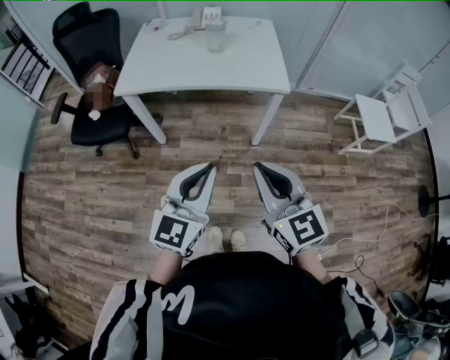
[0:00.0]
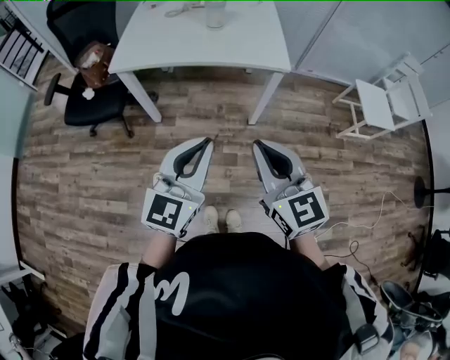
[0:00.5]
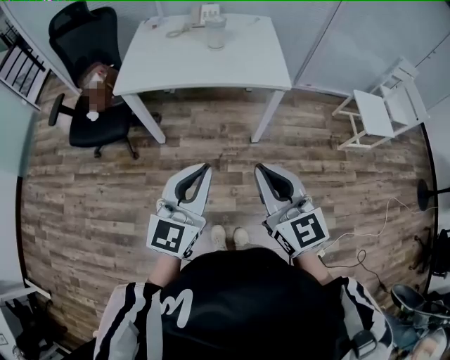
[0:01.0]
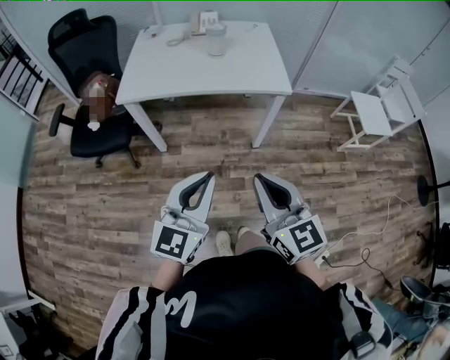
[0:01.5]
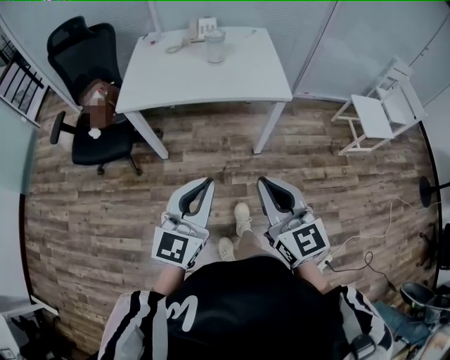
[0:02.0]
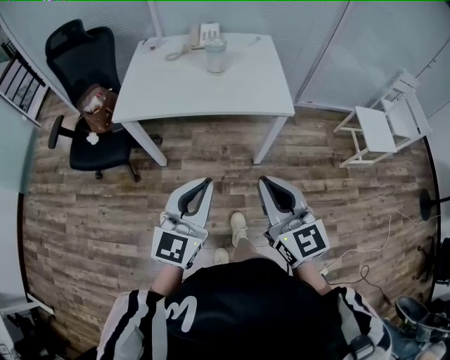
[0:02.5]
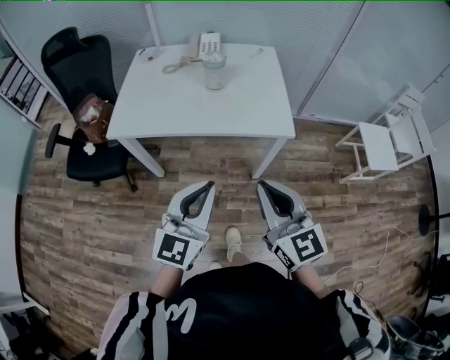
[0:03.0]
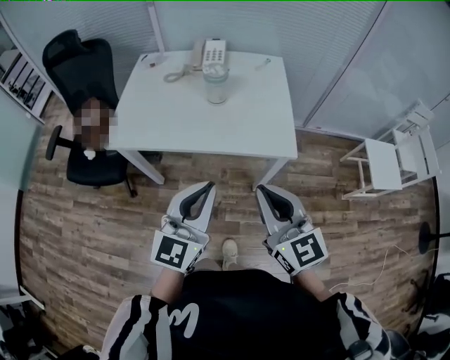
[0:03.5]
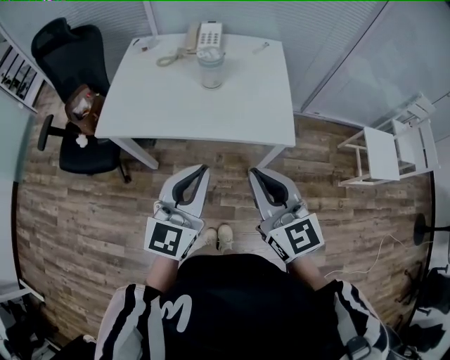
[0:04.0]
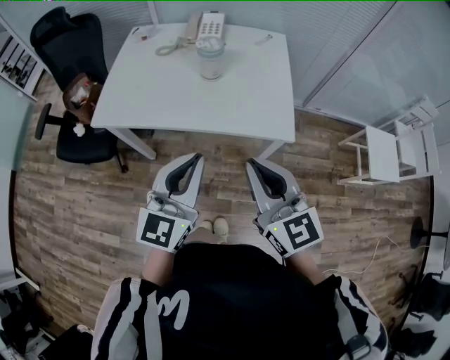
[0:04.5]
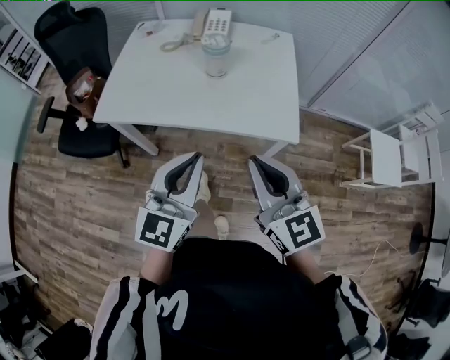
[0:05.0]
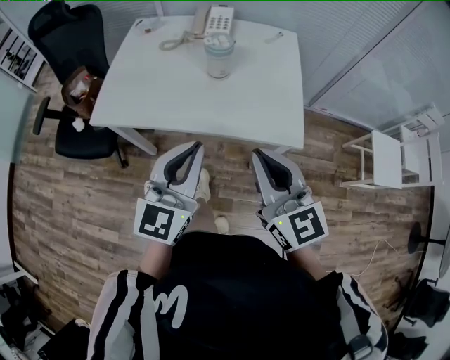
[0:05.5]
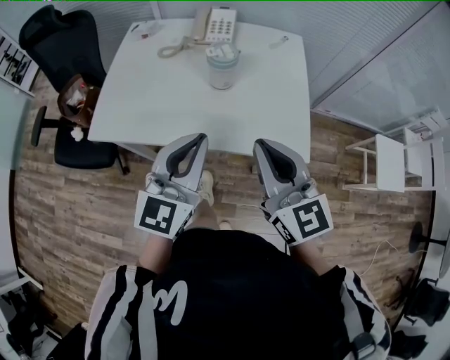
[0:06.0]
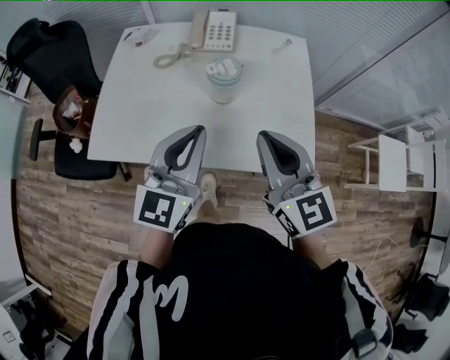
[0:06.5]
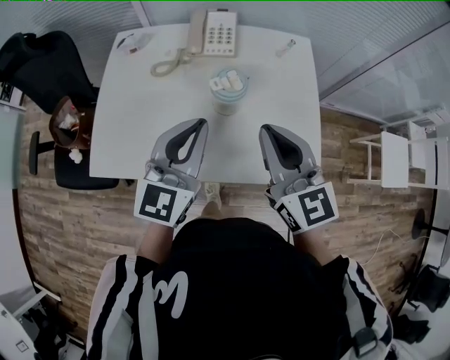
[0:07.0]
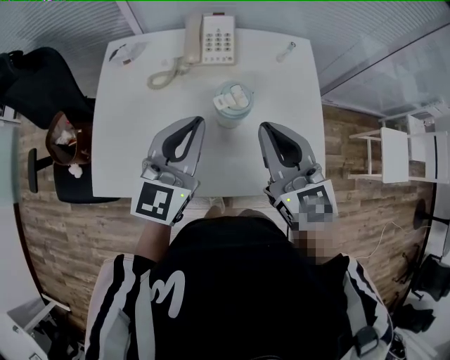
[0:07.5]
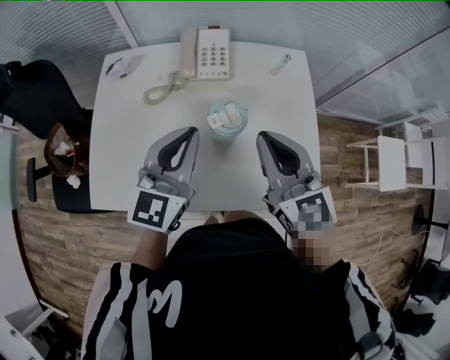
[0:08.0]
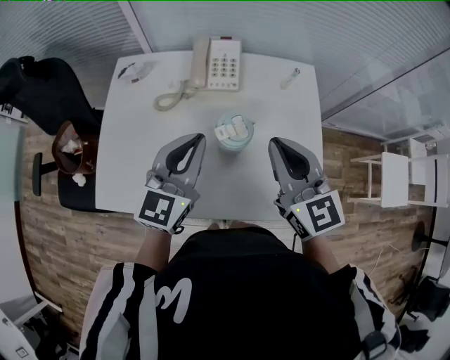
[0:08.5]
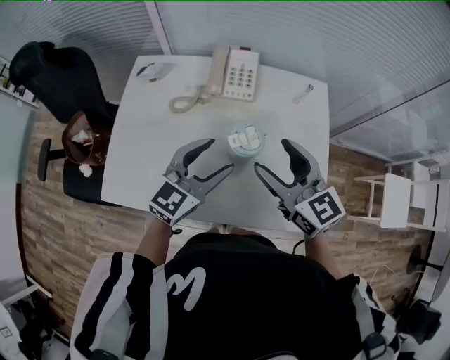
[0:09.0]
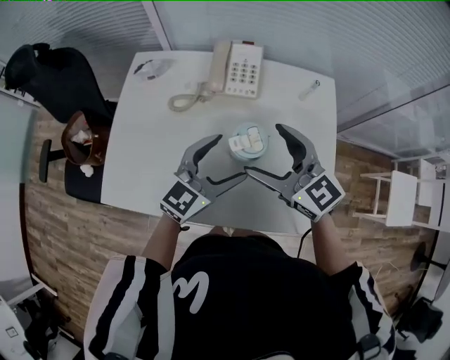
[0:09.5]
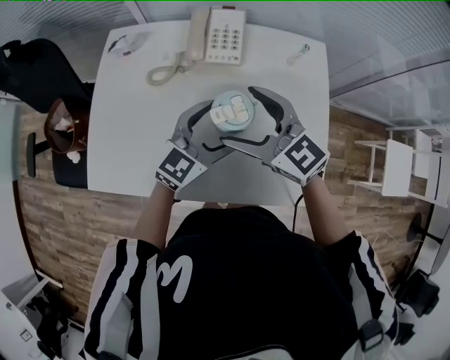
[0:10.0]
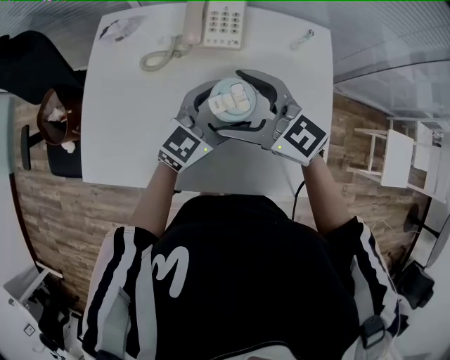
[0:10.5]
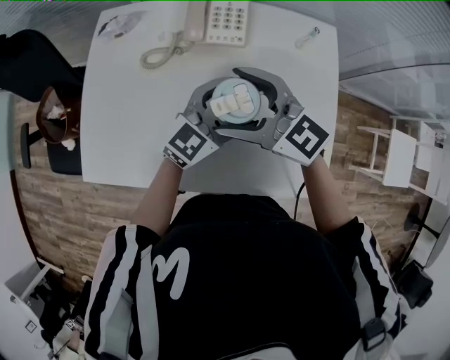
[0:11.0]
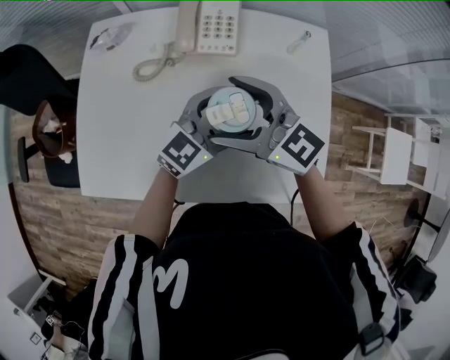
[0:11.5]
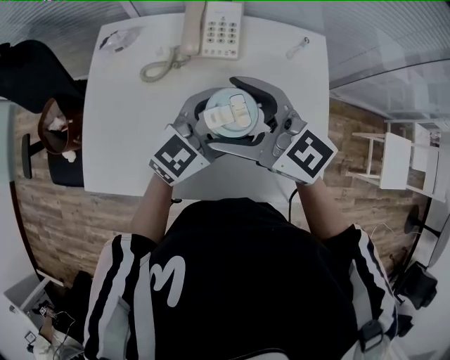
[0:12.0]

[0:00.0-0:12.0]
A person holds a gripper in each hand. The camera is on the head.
0.0 to 2.0 s: The grippers make only small movements.
2.0 to 4.0 s: The grippers both shift forward by about 25 cm.
4.0 to 6.0 s: Both grippers travel together forward, about 15 cm.
6.0 to 8.0 s: The grippers both shift forward by about 20 cm.
8.0 to 10.0 s: The right gripper moves downward and to the left, some 10 cm, changes its angle by approximately 30 degrees, and opens up. Meanwhile the left gripper travels downward and to the right by some 15 cm, and opens up.
10.0 to 12.0 s: The right gripper moves about 5 cm.

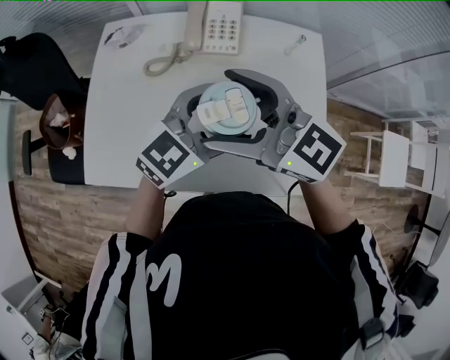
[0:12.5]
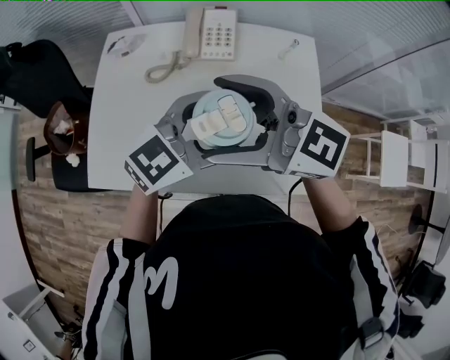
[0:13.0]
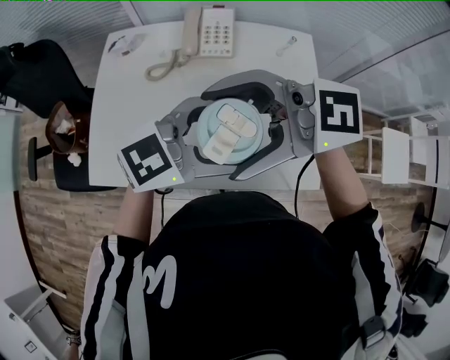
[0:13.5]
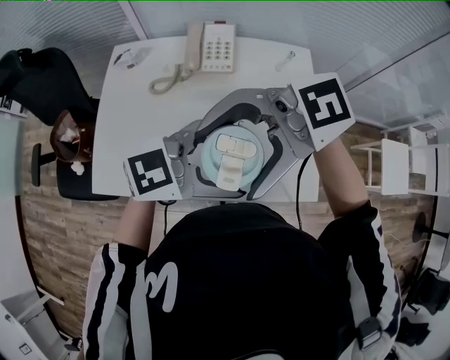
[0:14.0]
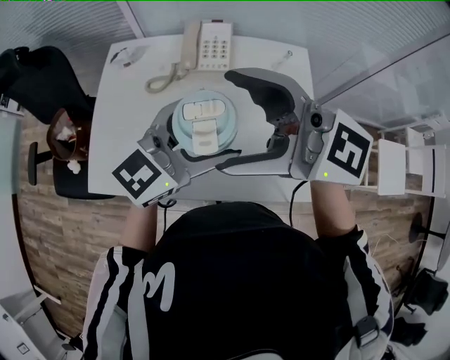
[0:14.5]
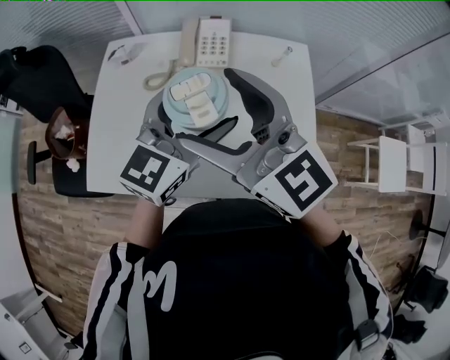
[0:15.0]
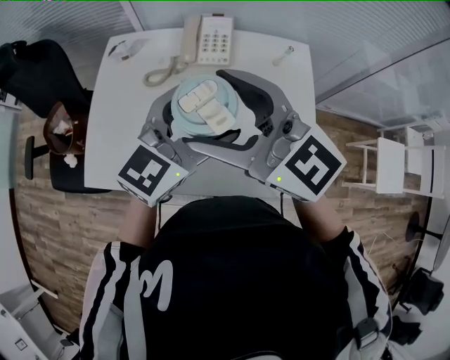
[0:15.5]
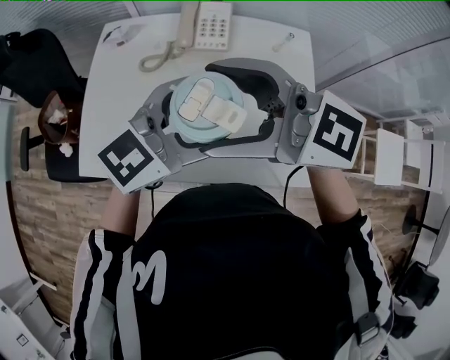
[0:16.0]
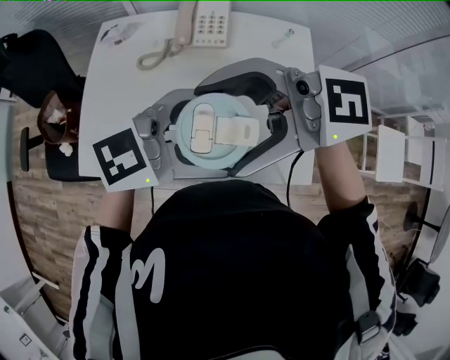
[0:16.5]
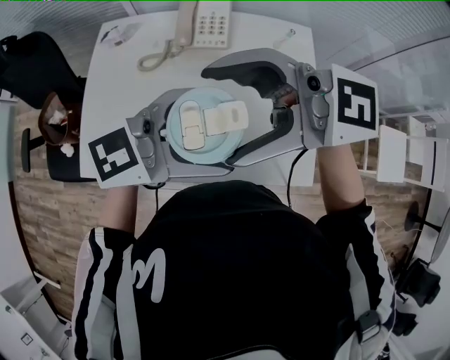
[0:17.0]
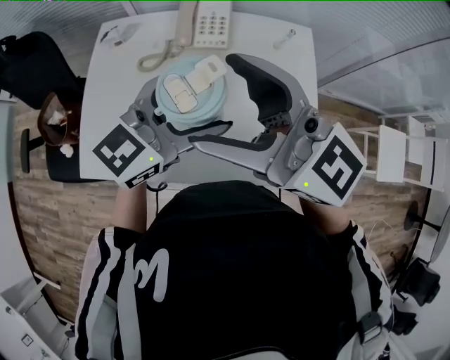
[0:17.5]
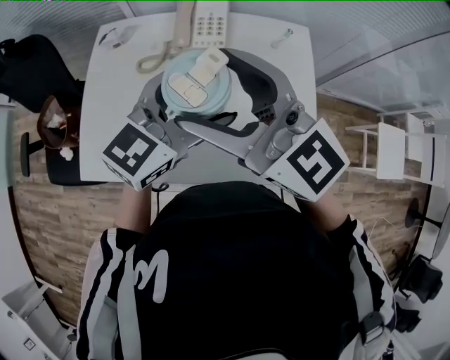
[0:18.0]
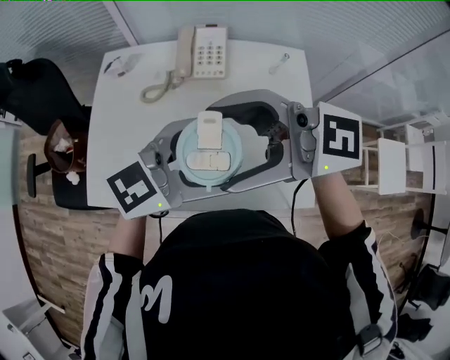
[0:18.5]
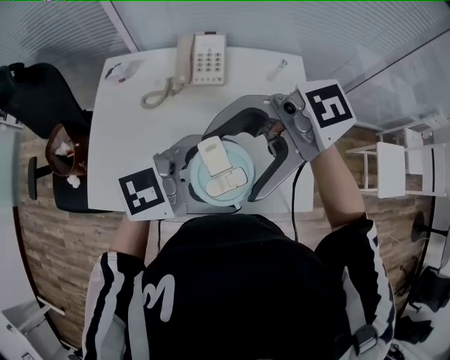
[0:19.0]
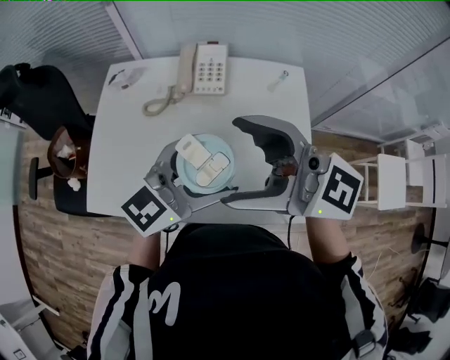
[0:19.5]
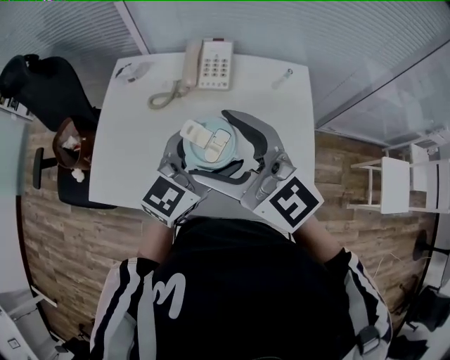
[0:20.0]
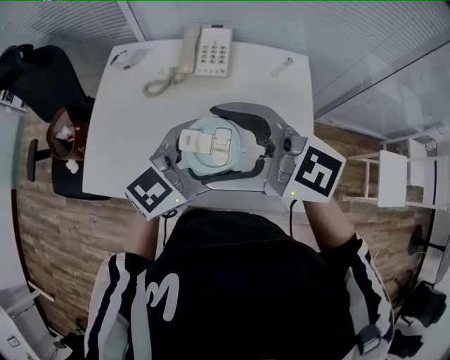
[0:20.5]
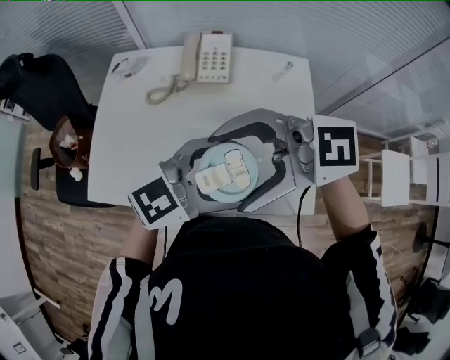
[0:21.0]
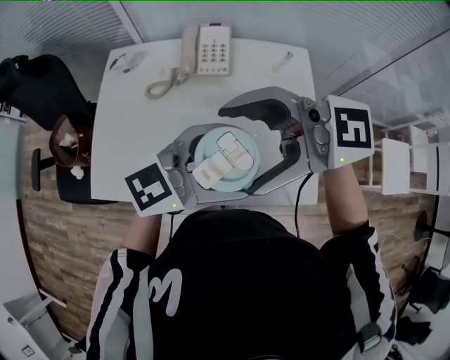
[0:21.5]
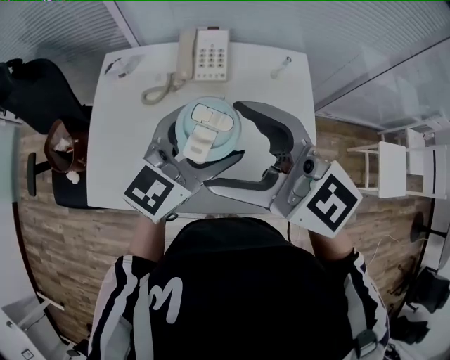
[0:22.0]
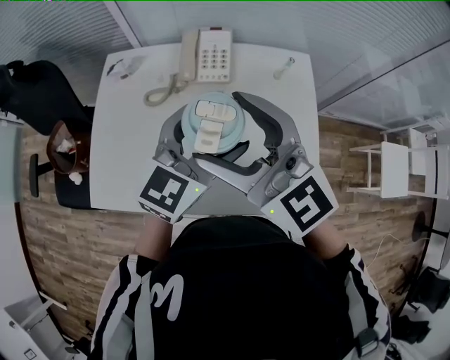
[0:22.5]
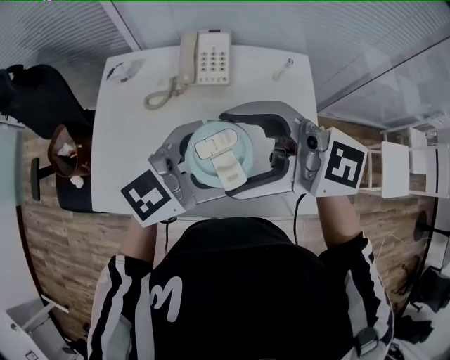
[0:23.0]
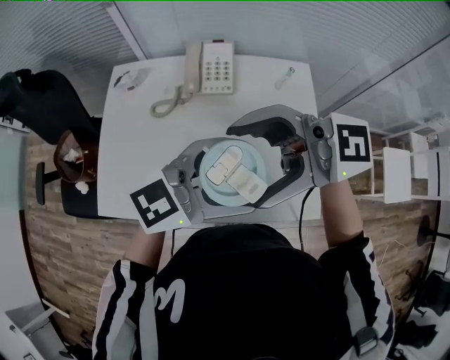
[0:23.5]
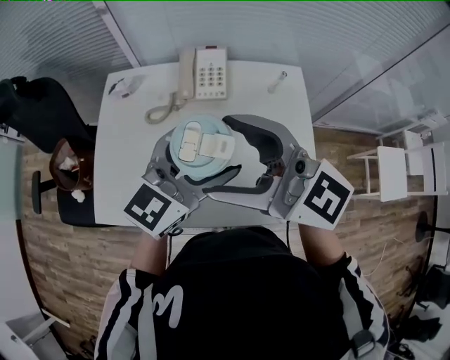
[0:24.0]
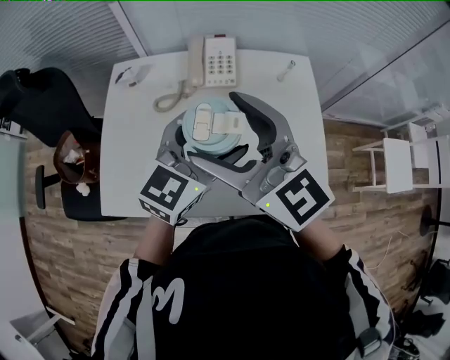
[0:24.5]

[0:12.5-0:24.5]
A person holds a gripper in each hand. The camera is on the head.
12.5 to 14.5 s: Both grippers travel together upward, about 10 cm.
14.5 to 16.5 s: The left gripper shifts by roughly 5 cm, and rotates some 20 degrees. The right gripper moves roughly 5 cm, and rotates approximately 30 degrees.
20.5 to 22.5 s: The right gripper moves some 5 cm, and changes its angle by approximately 30 degrees, while the left gripper moves about 10 cm.

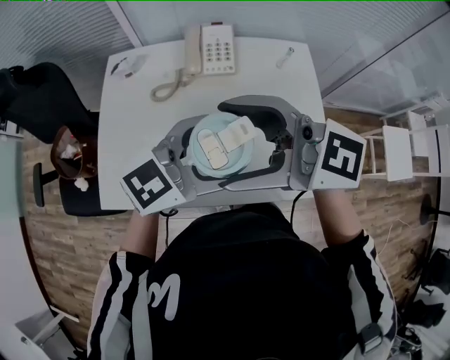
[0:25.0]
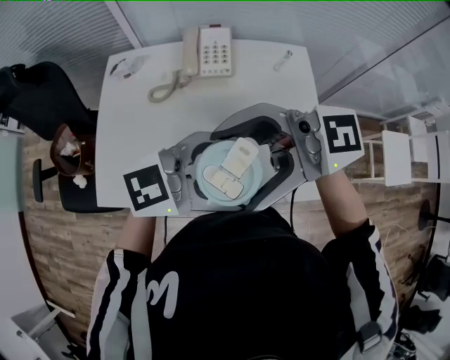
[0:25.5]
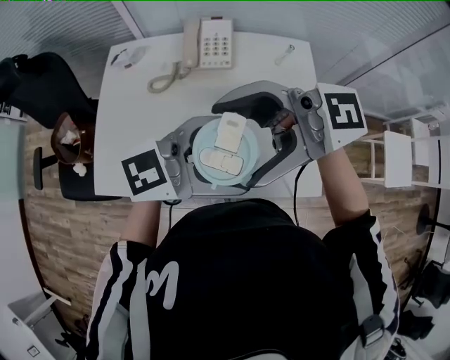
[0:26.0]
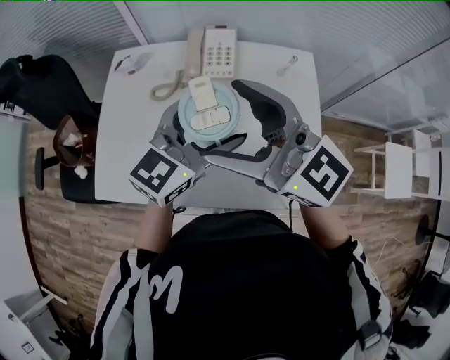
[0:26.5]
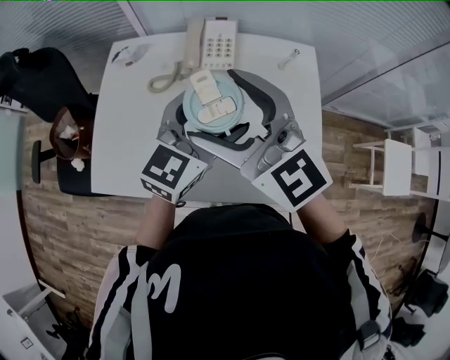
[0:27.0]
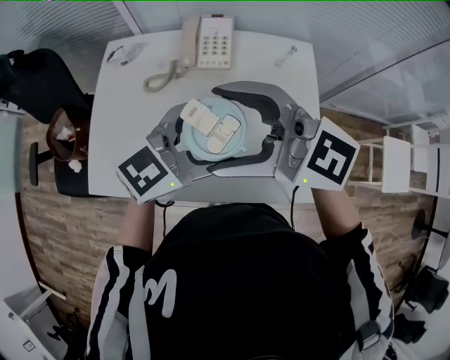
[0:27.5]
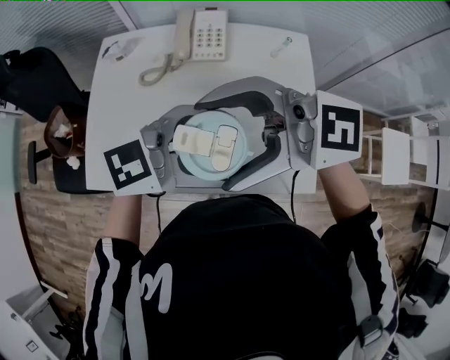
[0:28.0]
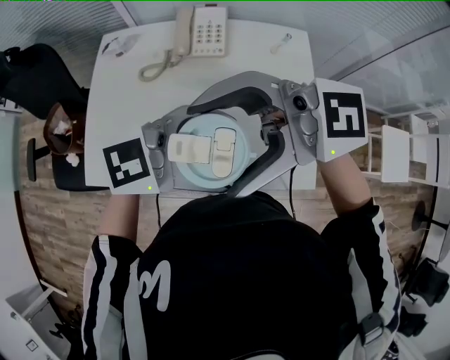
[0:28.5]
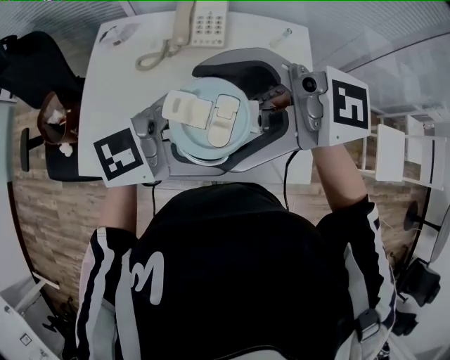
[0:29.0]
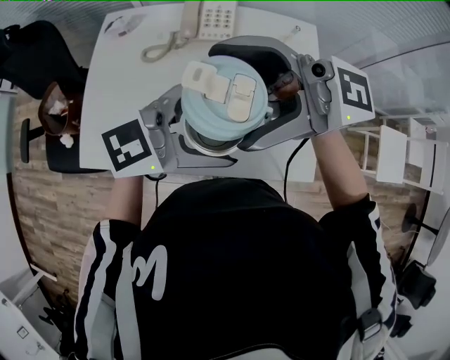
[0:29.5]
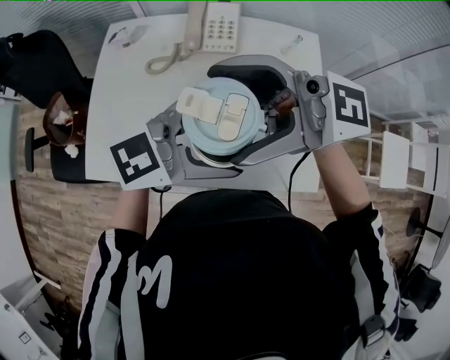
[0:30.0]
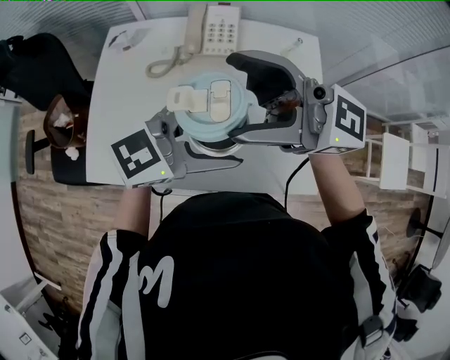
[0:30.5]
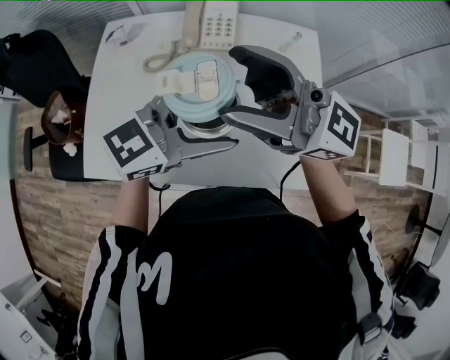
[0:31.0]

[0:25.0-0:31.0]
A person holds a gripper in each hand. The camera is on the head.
25.0 to 27.0 s: The left gripper ends up approximately 10 cm from where it was, and turns by roughly 30 degrees. The right gripper shifts by roughly 10 cm, and changes its angle by some 30 degrees.
27.0 to 29.0 s: The right gripper shifts by some 10 cm, and turns by roughly 50 degrees; the left gripper changes place by roughly 10 cm, and changes its angle by roughly 40 degrees.
29.0 to 31.0 s: The right gripper shifts by approximately 10 cm, and swivels approximately 30 degrees. Meanwhile the left gripper ends up roughly 5 cm from where it was.
